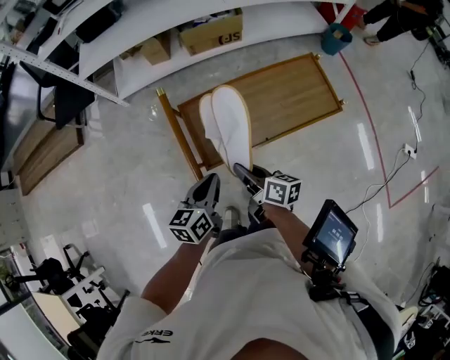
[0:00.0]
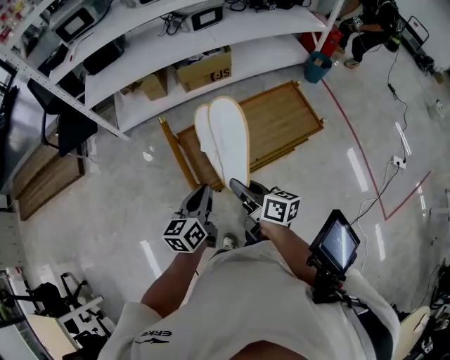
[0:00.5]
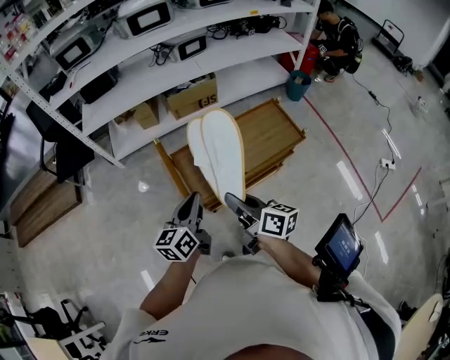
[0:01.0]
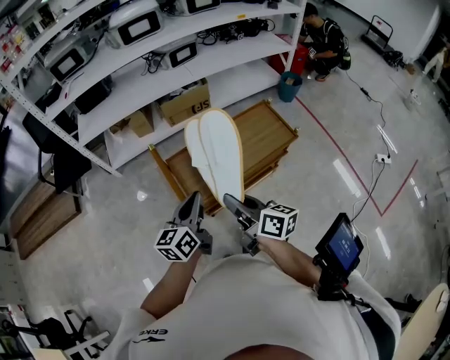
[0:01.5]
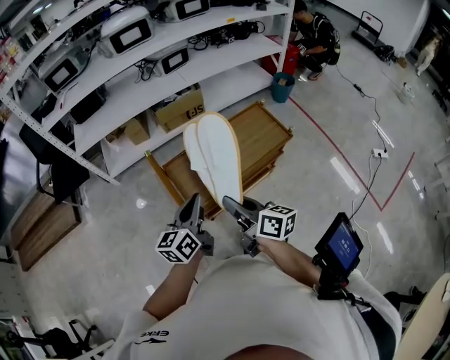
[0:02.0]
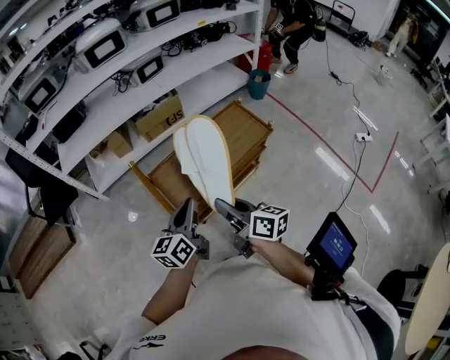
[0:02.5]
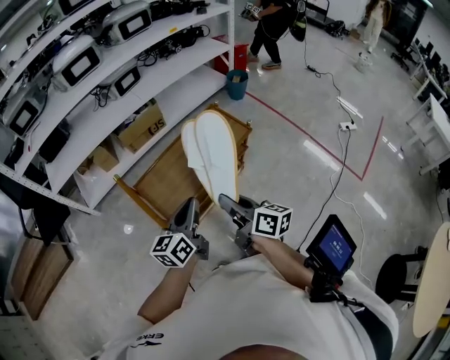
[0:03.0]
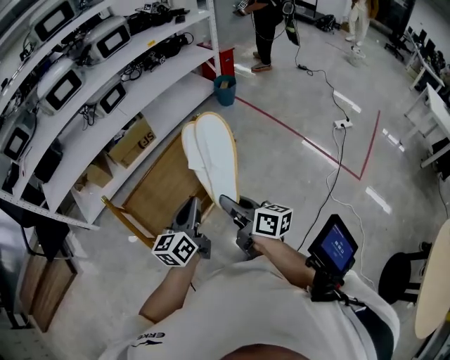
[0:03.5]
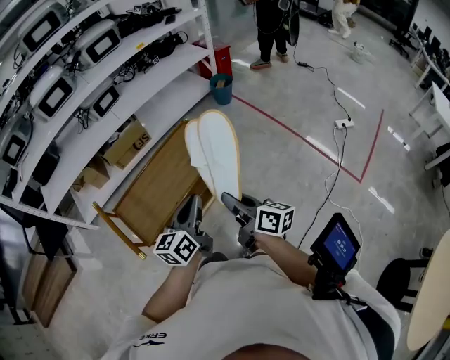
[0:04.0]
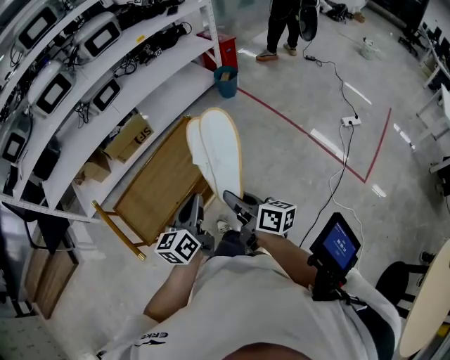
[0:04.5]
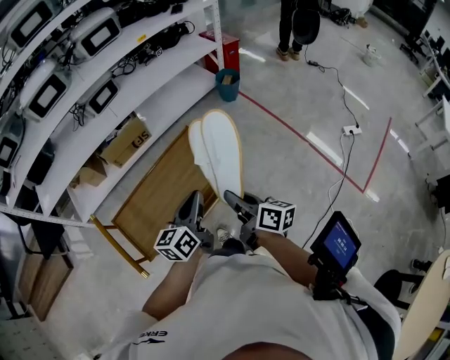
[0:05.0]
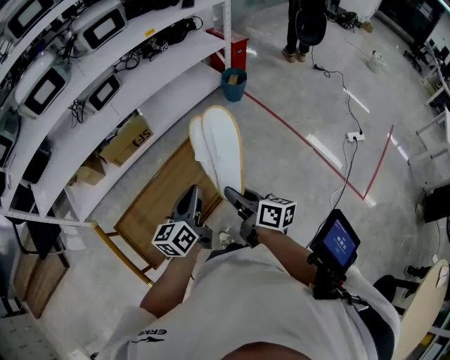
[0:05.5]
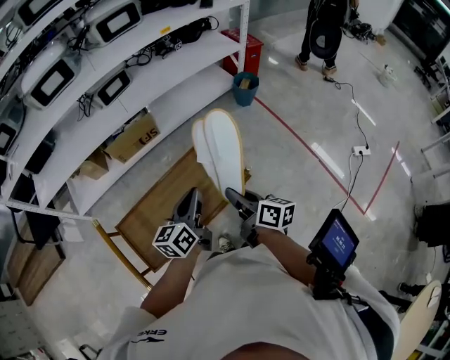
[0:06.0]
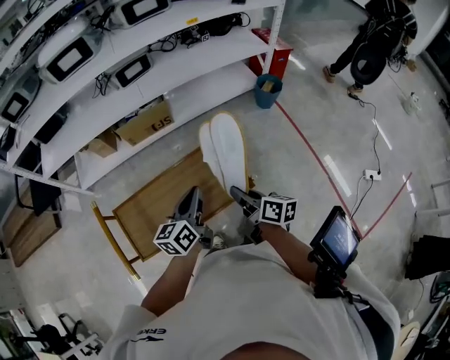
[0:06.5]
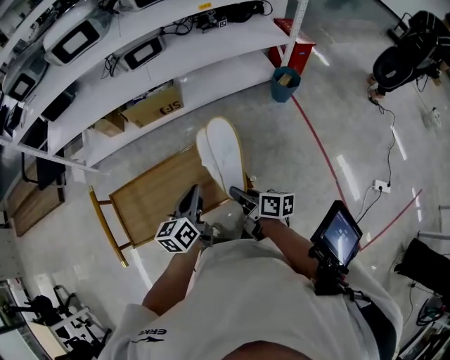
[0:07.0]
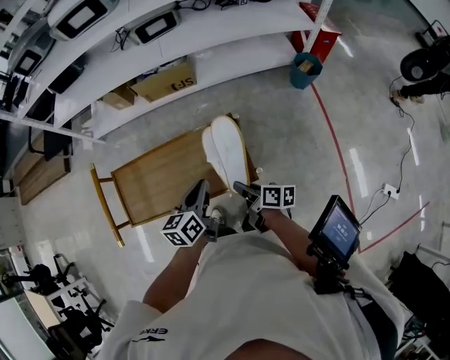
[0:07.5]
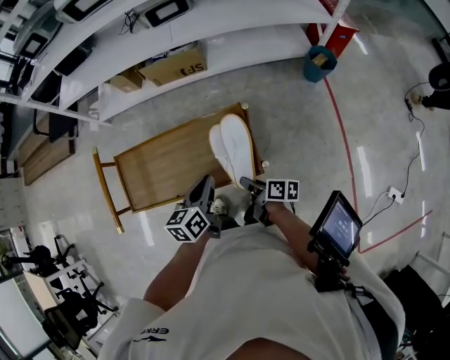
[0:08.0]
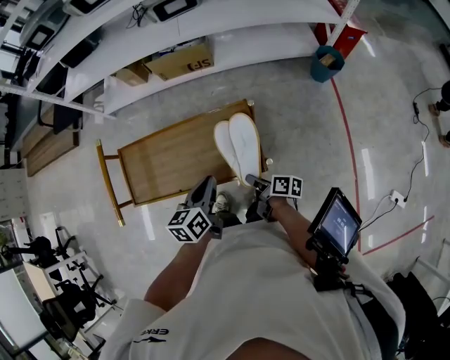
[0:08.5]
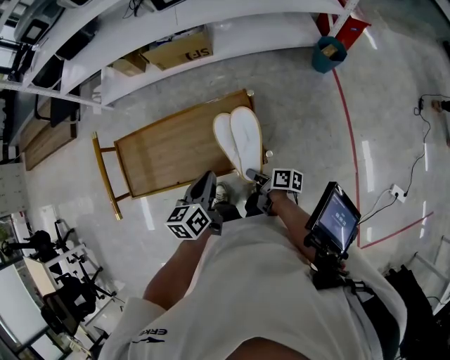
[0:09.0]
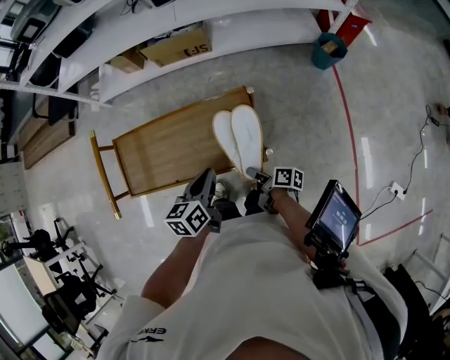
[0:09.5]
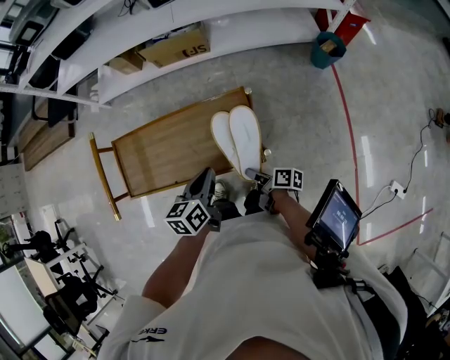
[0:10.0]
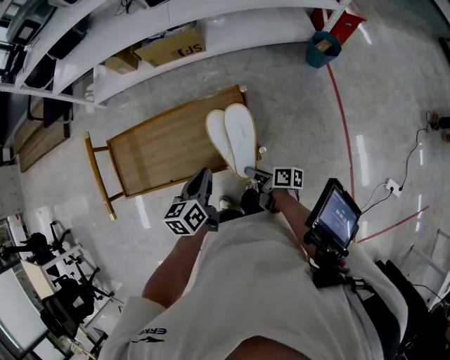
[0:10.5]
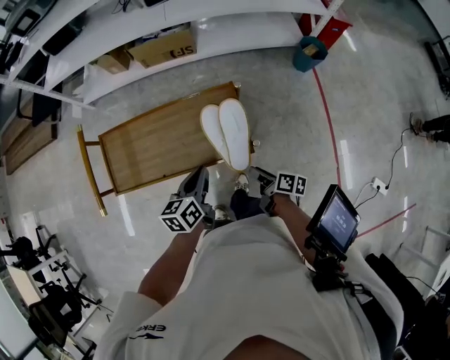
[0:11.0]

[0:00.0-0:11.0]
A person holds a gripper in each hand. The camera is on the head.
0.0 to 2.0 s: The left gripper moves upward, some 15 cm, and turns by approximately 20 degrees; the right gripper is displaced upward and backward by approximately 20 cm, and rotates some 20 degrees.
2.0 to 3.5 s: The two grippers go some 20 cm to the right.
3.5 to 5.5 s: Both grippers travel together forward, about 20 cm.
5.5 to 7.5 s: The right gripper shifts some 15 cm downward, and changes its angle by some 40 degrees. The left gripper travels downward by some 10 cm, and rotates about 30 degrees.
7.5 to 9.0 s: The right gripper shifts about 10 cm downward.
9.0 to 11.0 s: The right gripper changes place by about 5 cm, and opens.

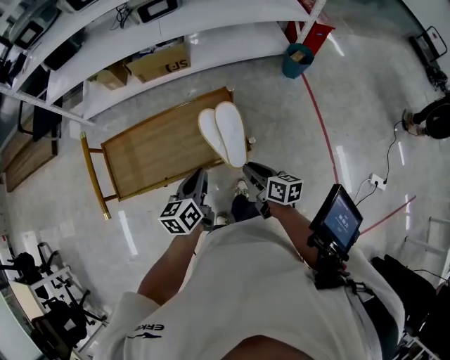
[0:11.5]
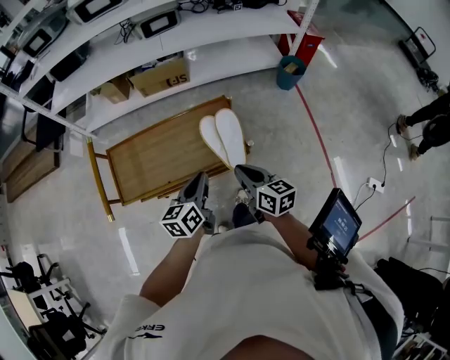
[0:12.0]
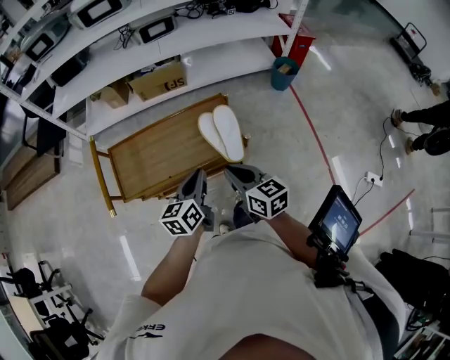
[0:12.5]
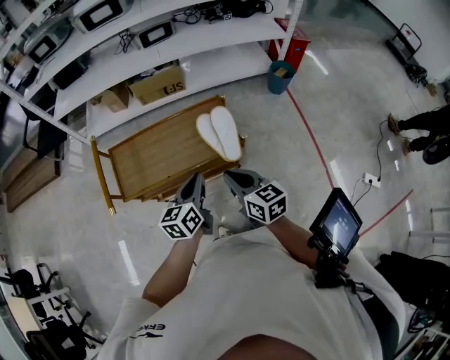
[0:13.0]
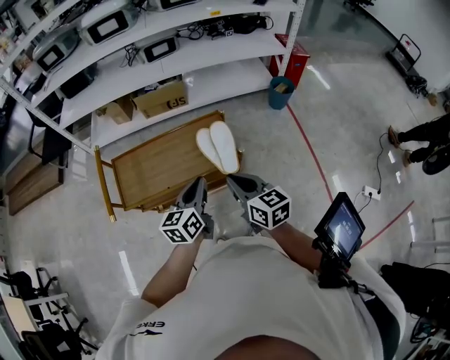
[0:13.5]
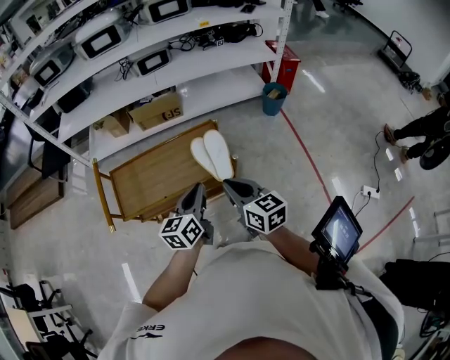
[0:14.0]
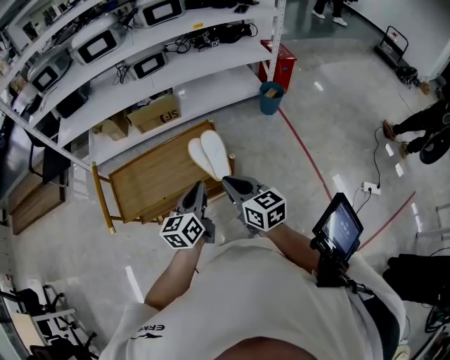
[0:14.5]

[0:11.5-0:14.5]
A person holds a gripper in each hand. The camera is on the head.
11.5 to 13.0 s: The left gripper heads backward and upward, covering some 10 cm. The right gripper travels upward, backward and to the left by some 20 cm, changes its angle by approximately 30 degrees, and closes its fingers.
13.0 to 14.5 s: The left gripper goes some 10 cm to the right and upward. Meanwhile the right gripper shifts roughly 5 cm upward.

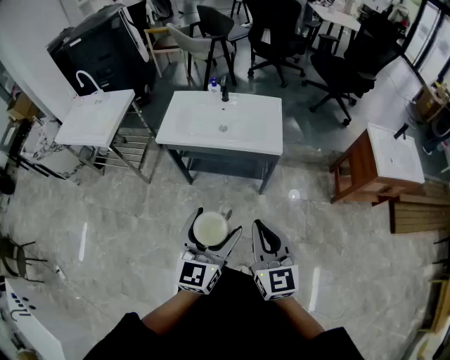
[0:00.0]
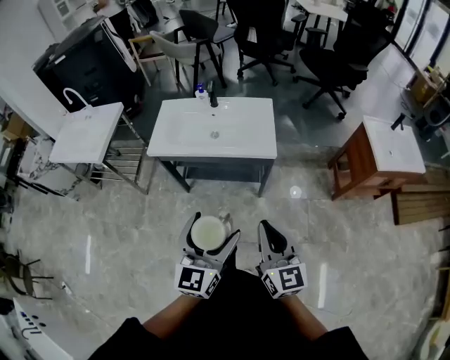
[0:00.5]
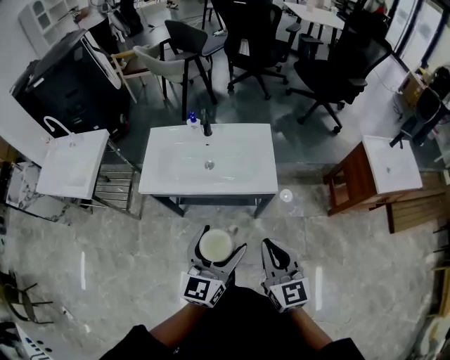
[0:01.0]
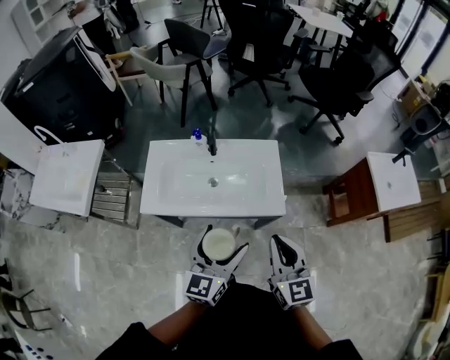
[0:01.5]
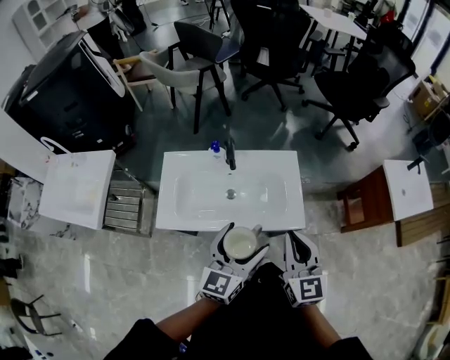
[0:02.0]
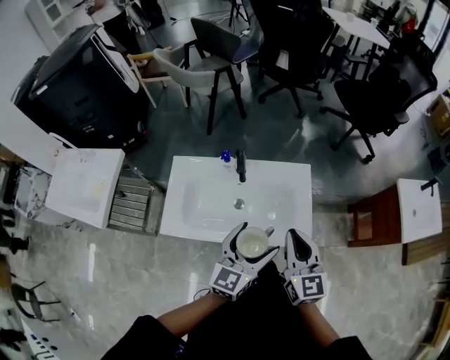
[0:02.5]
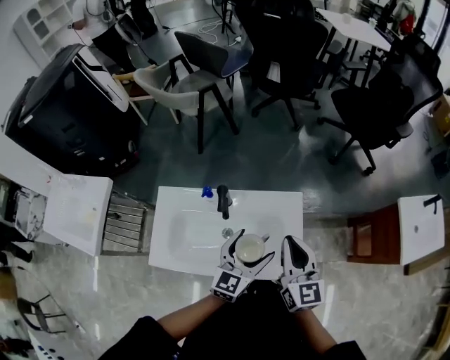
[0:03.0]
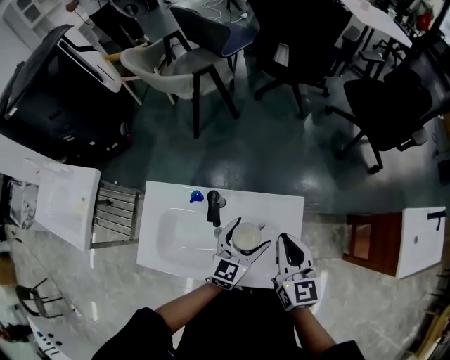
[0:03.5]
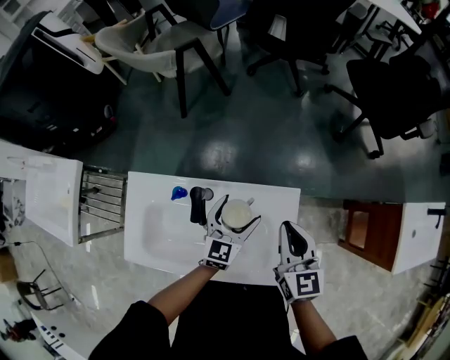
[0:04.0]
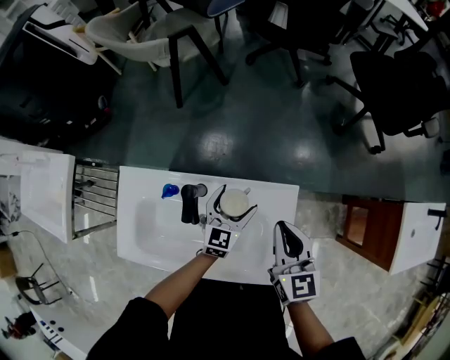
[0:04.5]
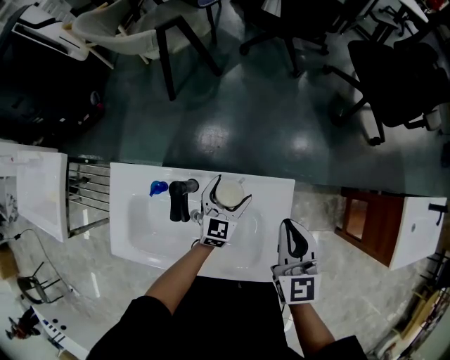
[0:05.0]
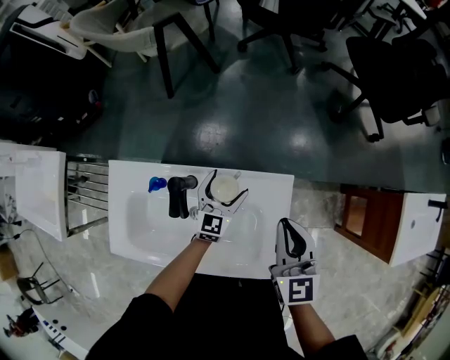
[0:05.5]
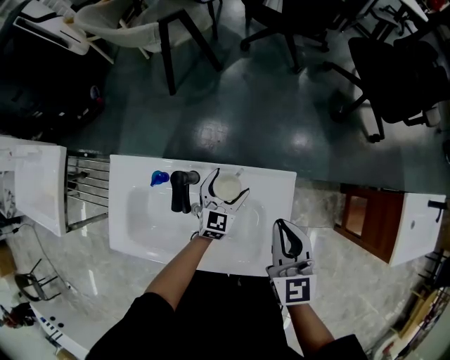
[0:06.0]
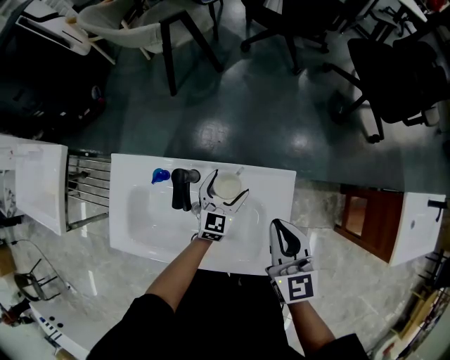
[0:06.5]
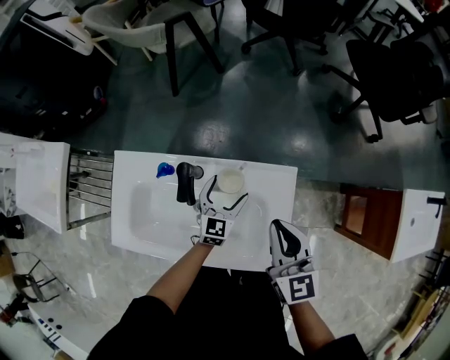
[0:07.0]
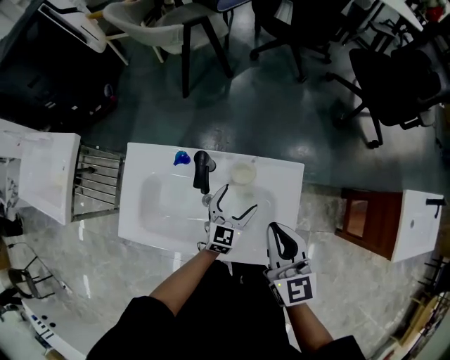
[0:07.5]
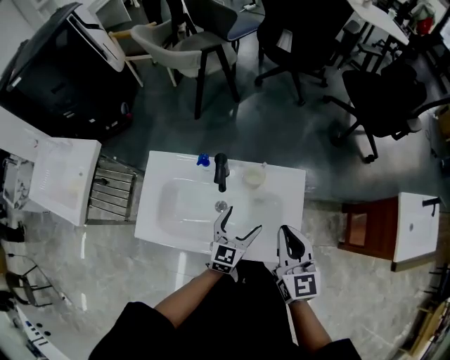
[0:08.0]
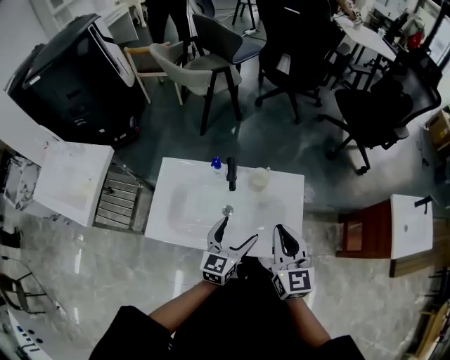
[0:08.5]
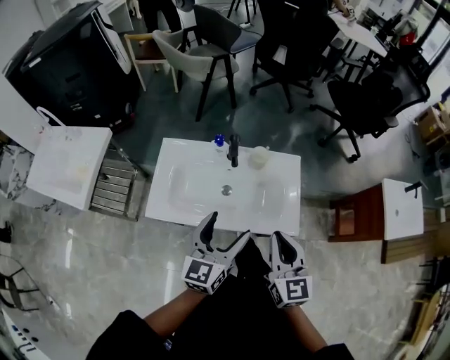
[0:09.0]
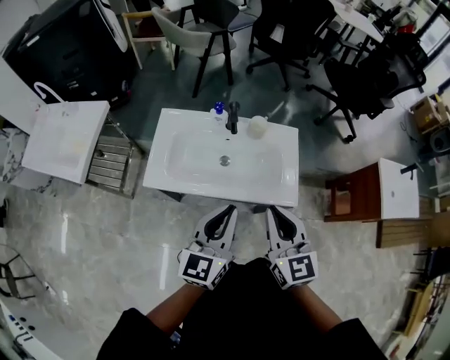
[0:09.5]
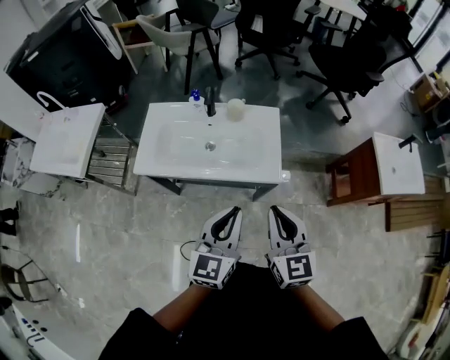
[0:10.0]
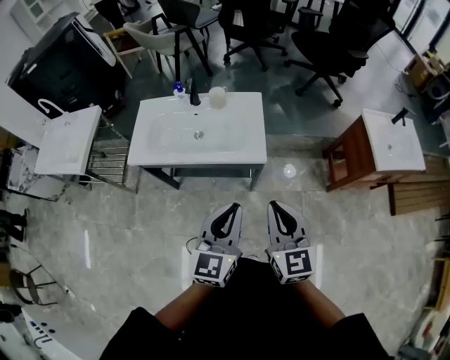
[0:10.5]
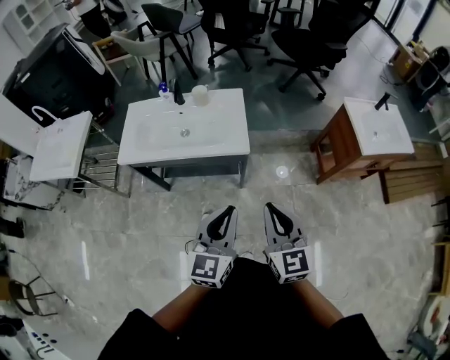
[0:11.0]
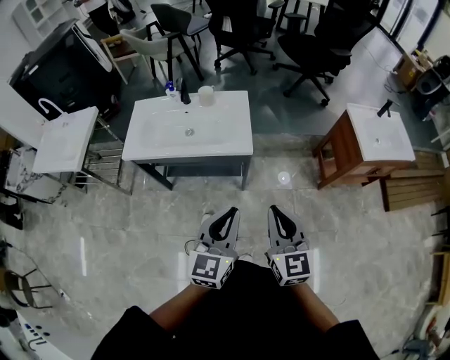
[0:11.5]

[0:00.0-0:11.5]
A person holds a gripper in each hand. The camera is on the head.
0.0 to 2.0 s: Both grippers are carried forward, some 40 cm.
2.0 to 4.0 s: The left gripper moves forward and downward, about 40 cm, while the right gripper travels forward by roughly 35 cm.
4.0 to 6.0 s: The left gripper goes approximately 10 cm downward.
6.0 to 7.5 s: The left gripper is displaced backward by roughly 10 cm; the right gripper moves backward and to the left, about 10 cm.
7.5 to 9.5 s: The left gripper is displaced backward and upward by about 50 cm, changes its angle by about 20 degrees, and closes up. Meanwhile the right gripper is displaced backward by some 30 cm.
9.5 to 11.5 s: The grippers both shift backward and to the right by about 35 cm.

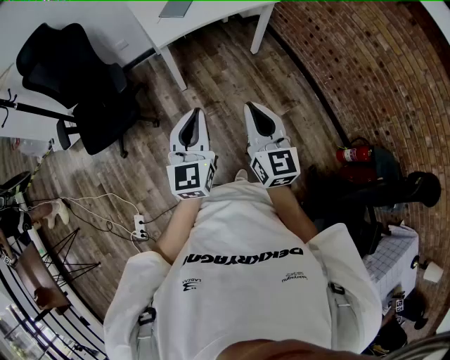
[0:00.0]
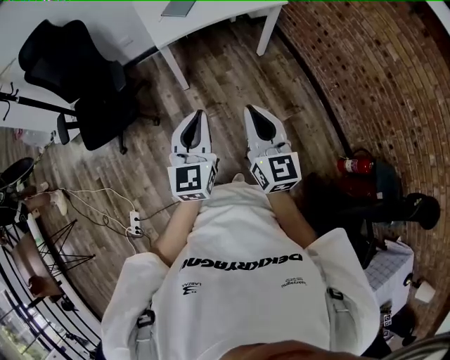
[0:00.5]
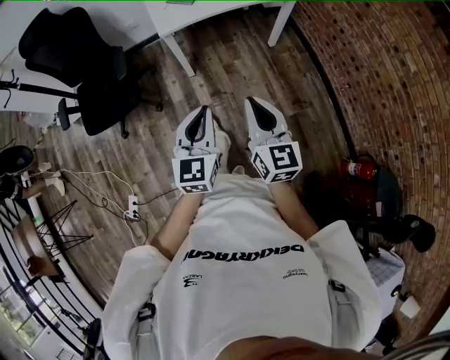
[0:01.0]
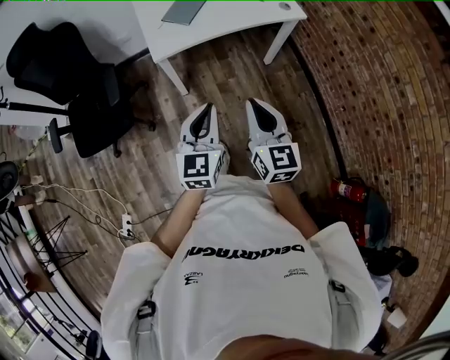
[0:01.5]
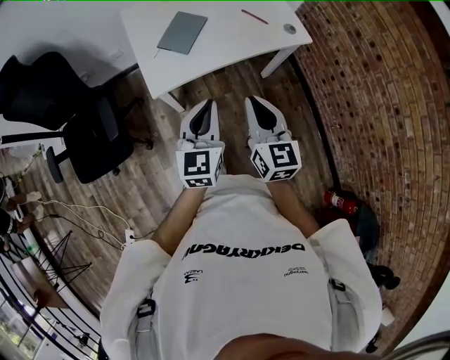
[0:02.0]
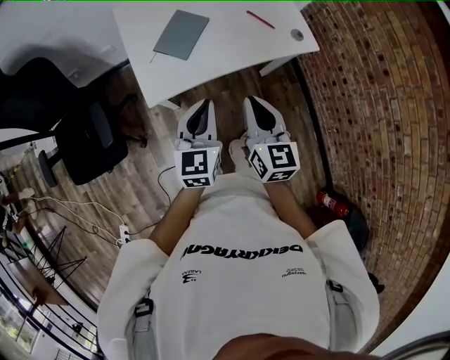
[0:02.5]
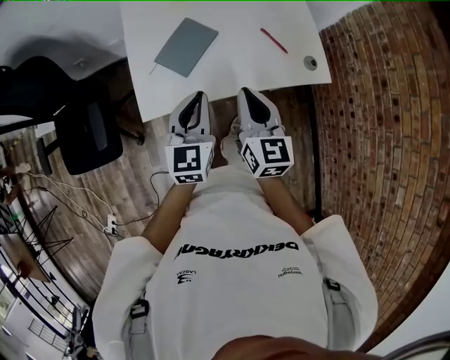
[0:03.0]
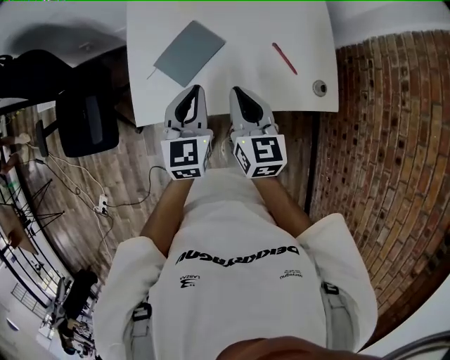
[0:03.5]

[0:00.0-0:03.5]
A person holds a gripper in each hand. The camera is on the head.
0.0 to 2.0 s: The two grippers travel together, forward, some 50 cm.
2.0 to 3.5 s: The grippers both shift forward by roughly 35 cm. The right gripper changes its angle by approximately 20 degrees. Meanwhile the left gripper turns by some 20 degrees.
